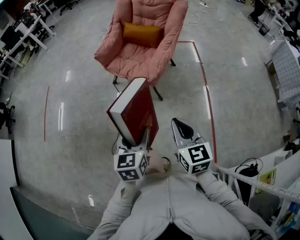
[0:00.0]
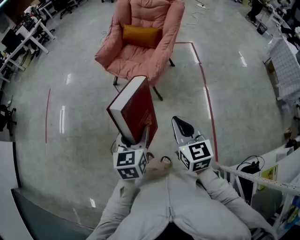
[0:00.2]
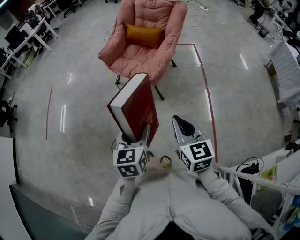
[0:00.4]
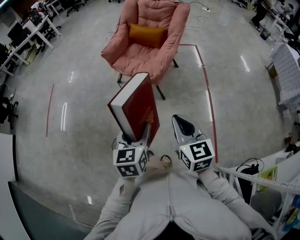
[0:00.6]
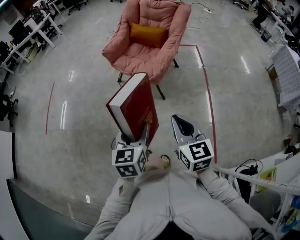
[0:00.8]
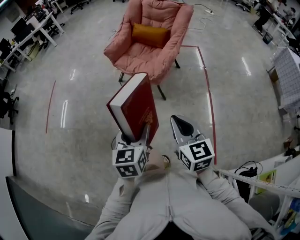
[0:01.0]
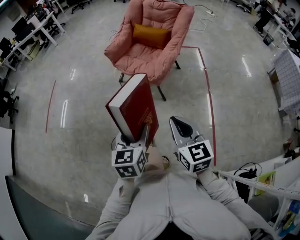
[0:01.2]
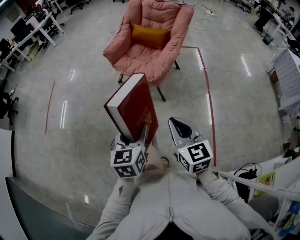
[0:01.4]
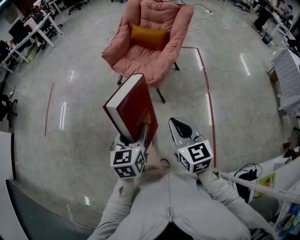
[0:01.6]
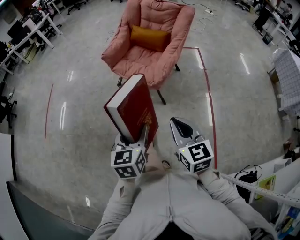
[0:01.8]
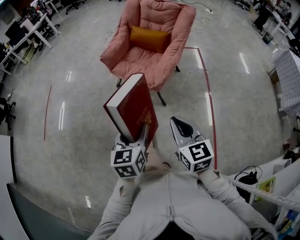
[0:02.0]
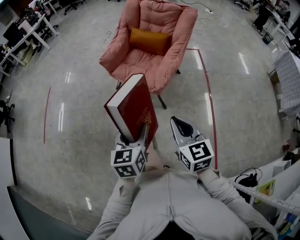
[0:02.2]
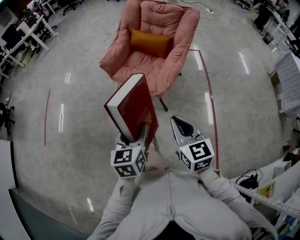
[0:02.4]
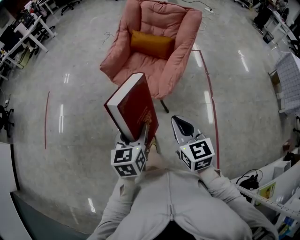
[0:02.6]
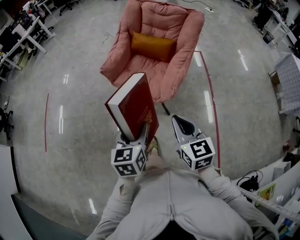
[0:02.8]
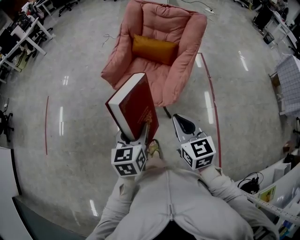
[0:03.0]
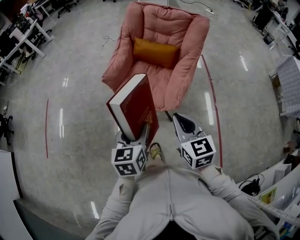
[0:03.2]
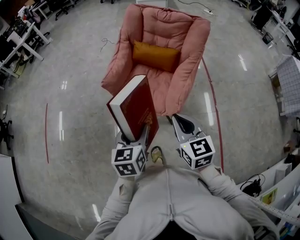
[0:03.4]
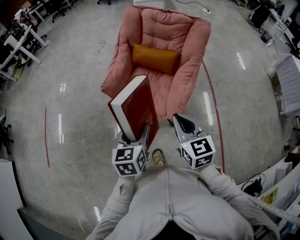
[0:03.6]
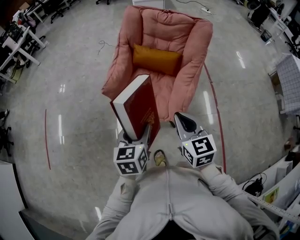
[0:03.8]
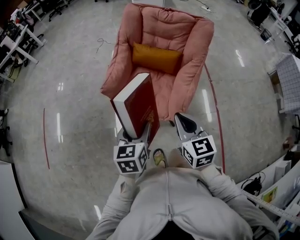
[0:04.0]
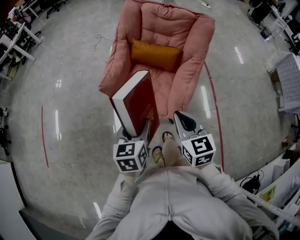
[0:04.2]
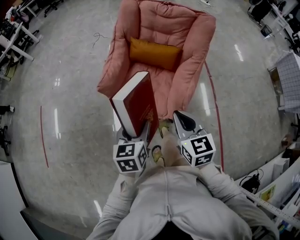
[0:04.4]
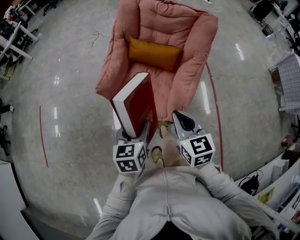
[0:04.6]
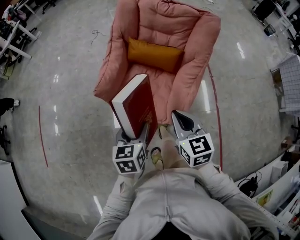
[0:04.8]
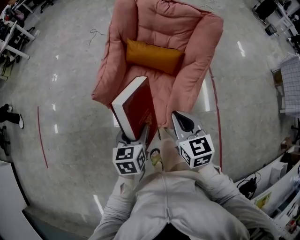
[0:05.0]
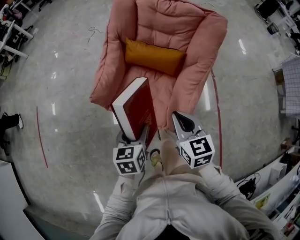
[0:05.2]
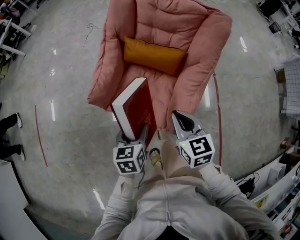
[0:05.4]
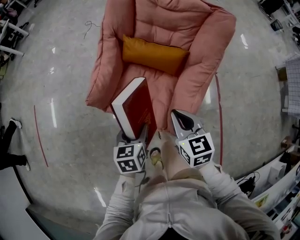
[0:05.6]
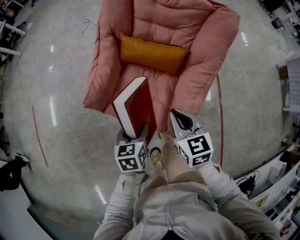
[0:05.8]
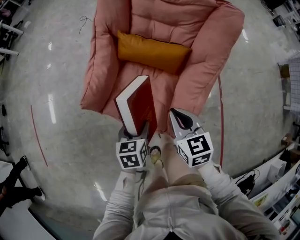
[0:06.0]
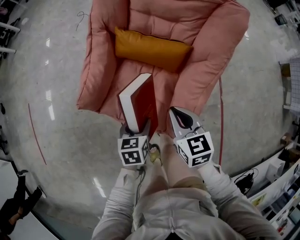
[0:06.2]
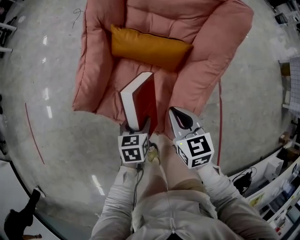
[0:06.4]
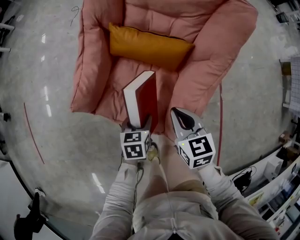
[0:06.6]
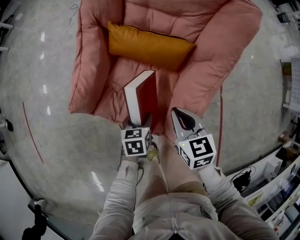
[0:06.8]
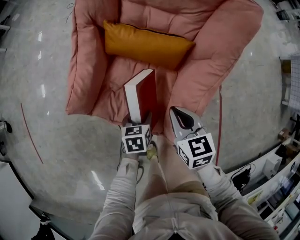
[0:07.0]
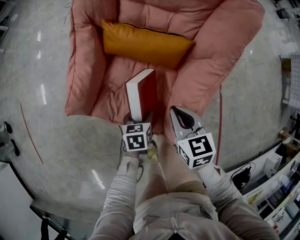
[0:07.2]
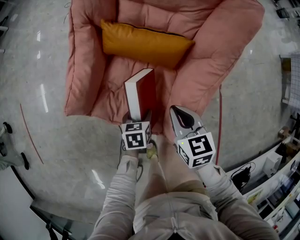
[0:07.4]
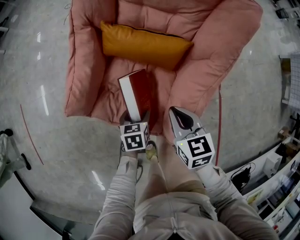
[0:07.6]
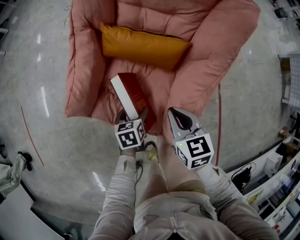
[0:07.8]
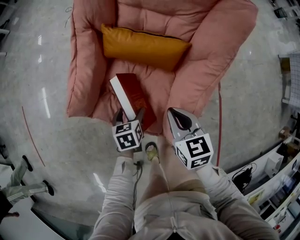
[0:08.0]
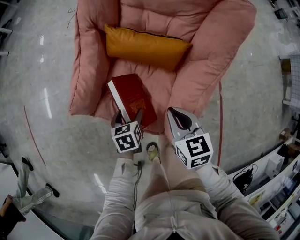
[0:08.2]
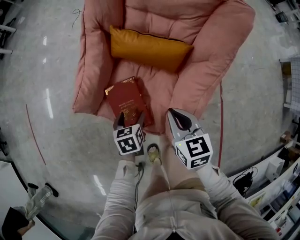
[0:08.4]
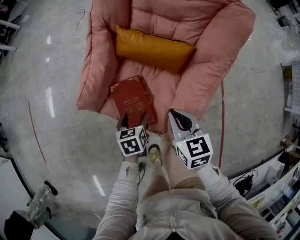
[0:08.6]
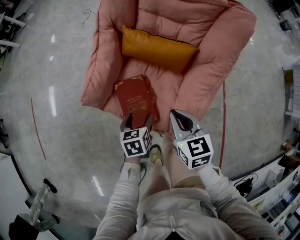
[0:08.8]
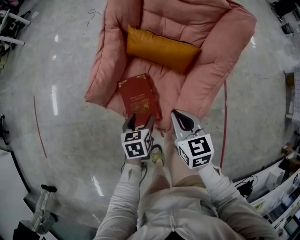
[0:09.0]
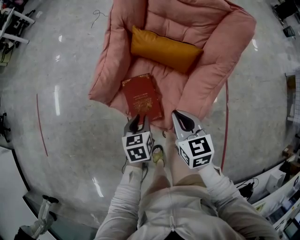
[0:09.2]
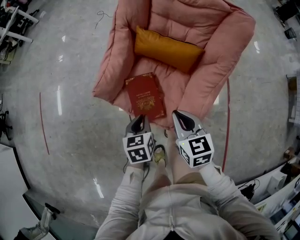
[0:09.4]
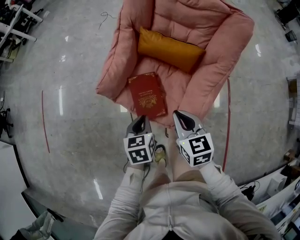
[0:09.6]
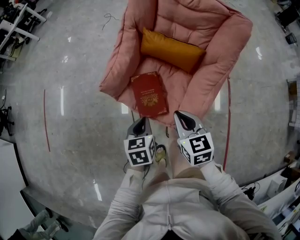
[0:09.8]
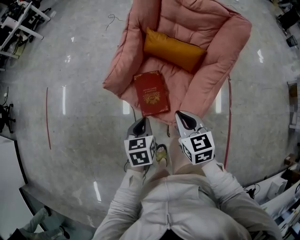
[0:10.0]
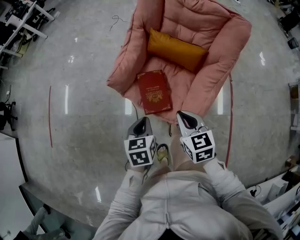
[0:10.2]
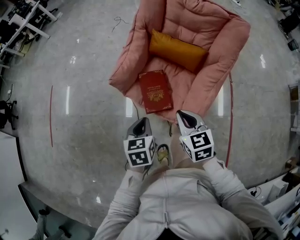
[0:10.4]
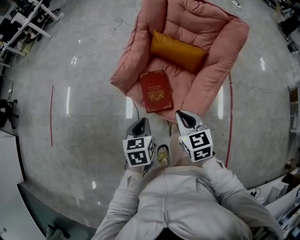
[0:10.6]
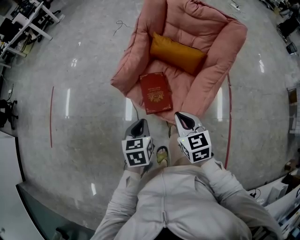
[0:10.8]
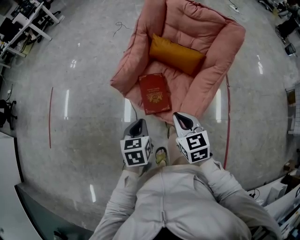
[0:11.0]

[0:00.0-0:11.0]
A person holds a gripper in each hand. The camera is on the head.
0:01.6 to 0:03.2: Both grippers travel together forward, approximately 30 cm.
0:03.2 to 0:04.8: The right gripper shifts roughly 15 cm forward. The left gripper is displaced forward and downward by some 20 cm.
0:04.8 to 0:06.2: The left gripper moves downward and forward, about 20 cm, while the right gripper moves forward and downward, roughly 20 cm.
0:06.2 to 0:07.8: The right gripper is displaced downward by some 5 cm. The left gripper heads downward and forward, covering approximately 10 cm.
0:07.8 to 0:09.4: Both grippers travel together upward, backward and to the left, roughly 15 cm. The left gripper closes its fingers.
0:09.4 to 0:11.0: Both grippers travel together backward, upward and to the left, some 15 cm.

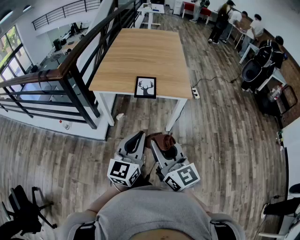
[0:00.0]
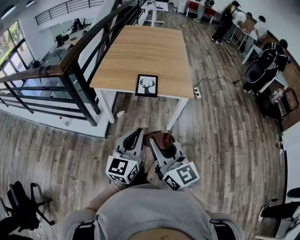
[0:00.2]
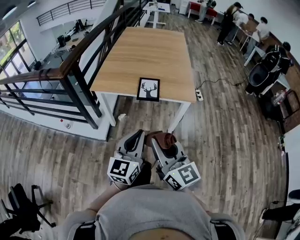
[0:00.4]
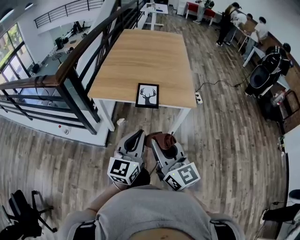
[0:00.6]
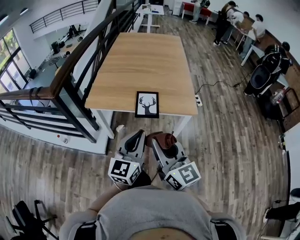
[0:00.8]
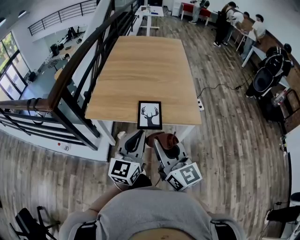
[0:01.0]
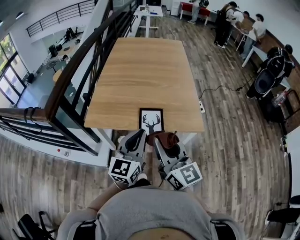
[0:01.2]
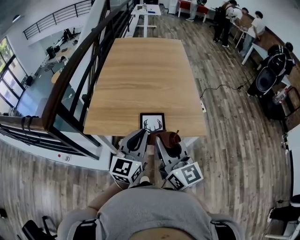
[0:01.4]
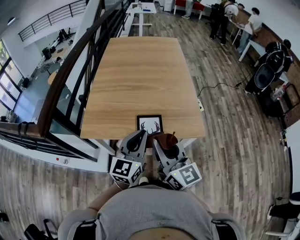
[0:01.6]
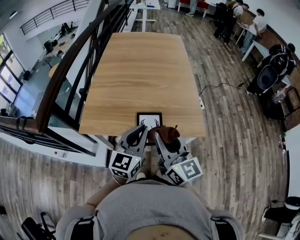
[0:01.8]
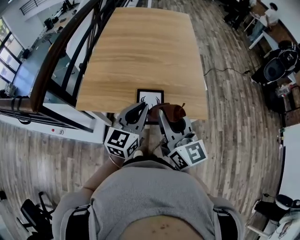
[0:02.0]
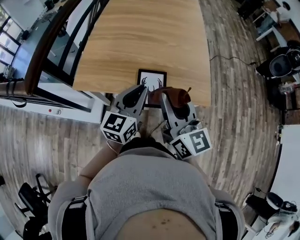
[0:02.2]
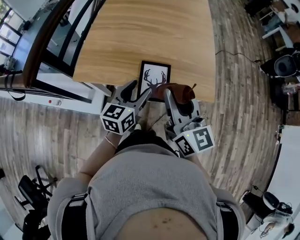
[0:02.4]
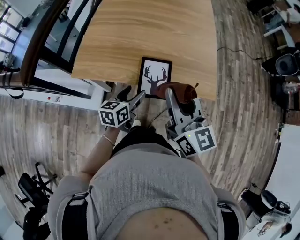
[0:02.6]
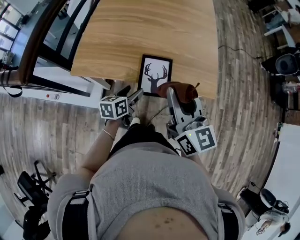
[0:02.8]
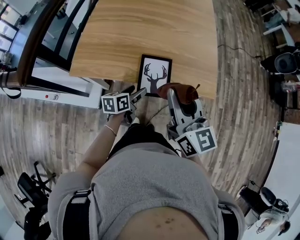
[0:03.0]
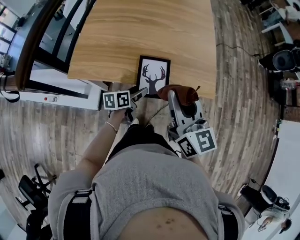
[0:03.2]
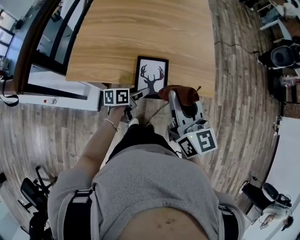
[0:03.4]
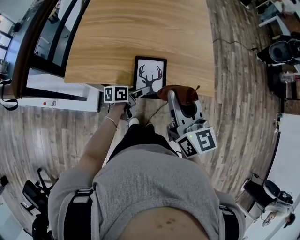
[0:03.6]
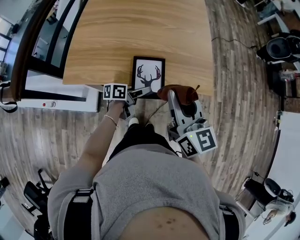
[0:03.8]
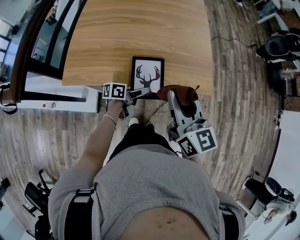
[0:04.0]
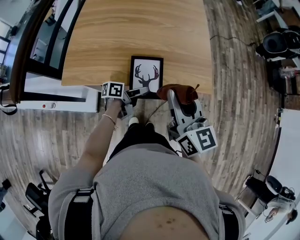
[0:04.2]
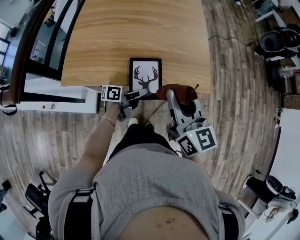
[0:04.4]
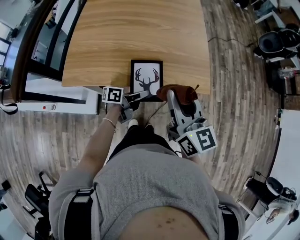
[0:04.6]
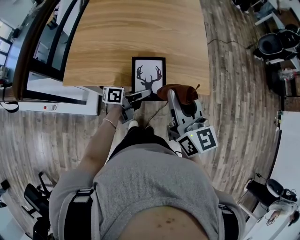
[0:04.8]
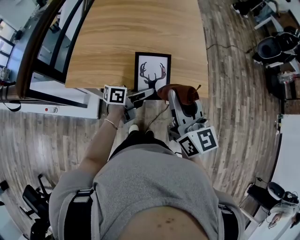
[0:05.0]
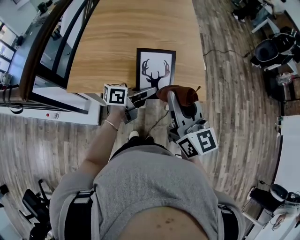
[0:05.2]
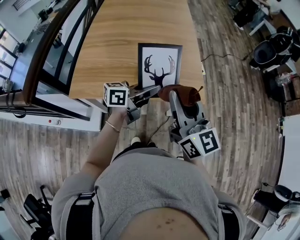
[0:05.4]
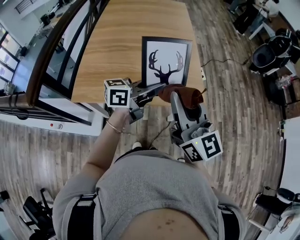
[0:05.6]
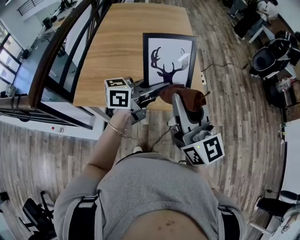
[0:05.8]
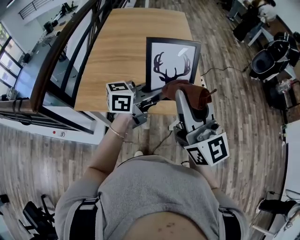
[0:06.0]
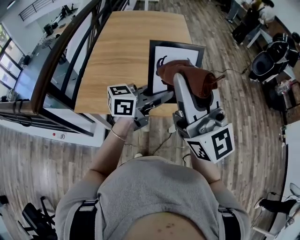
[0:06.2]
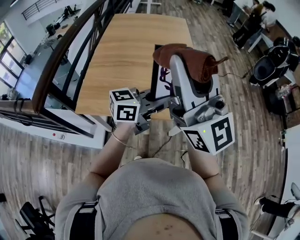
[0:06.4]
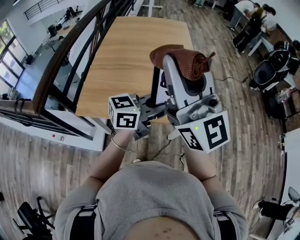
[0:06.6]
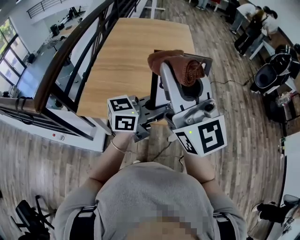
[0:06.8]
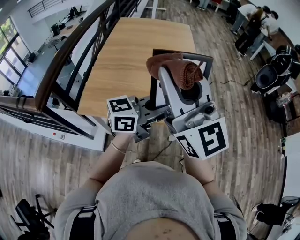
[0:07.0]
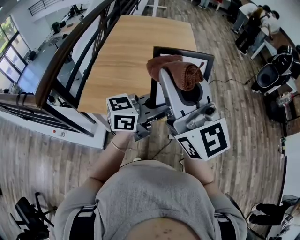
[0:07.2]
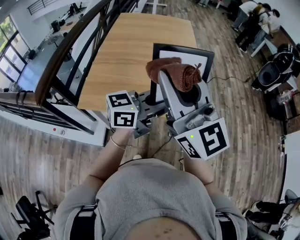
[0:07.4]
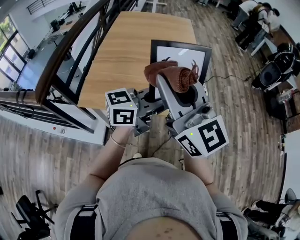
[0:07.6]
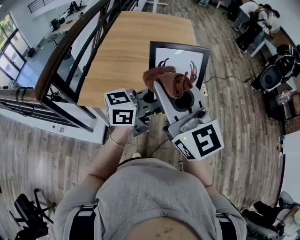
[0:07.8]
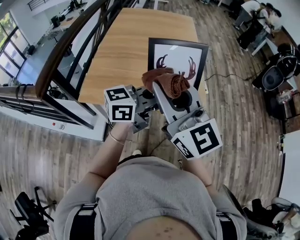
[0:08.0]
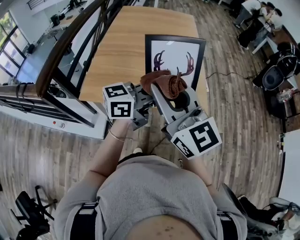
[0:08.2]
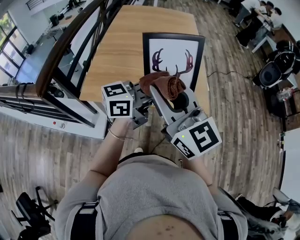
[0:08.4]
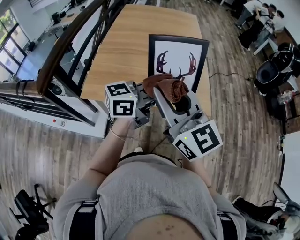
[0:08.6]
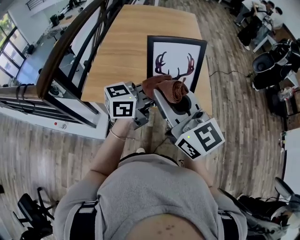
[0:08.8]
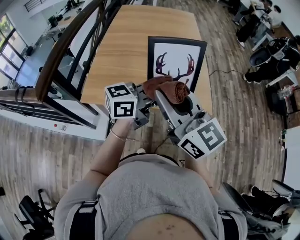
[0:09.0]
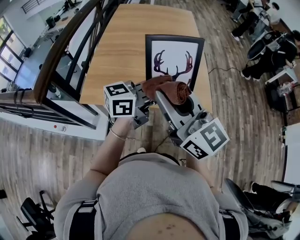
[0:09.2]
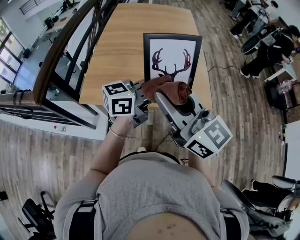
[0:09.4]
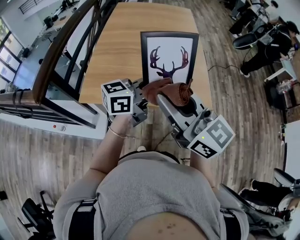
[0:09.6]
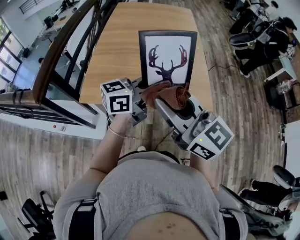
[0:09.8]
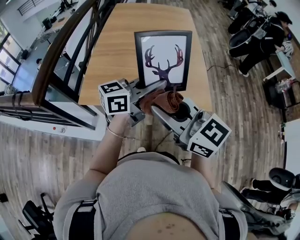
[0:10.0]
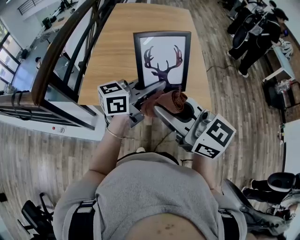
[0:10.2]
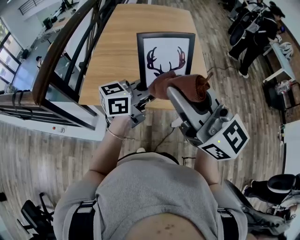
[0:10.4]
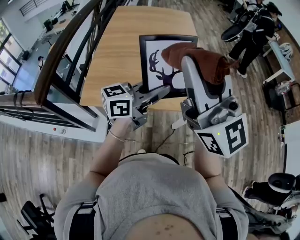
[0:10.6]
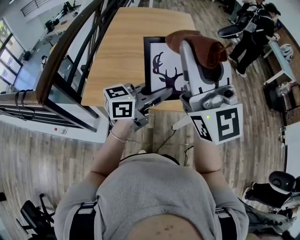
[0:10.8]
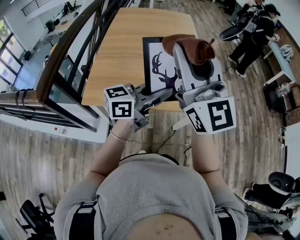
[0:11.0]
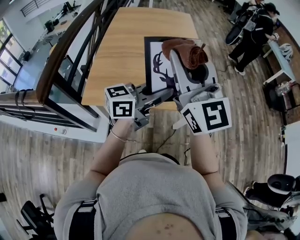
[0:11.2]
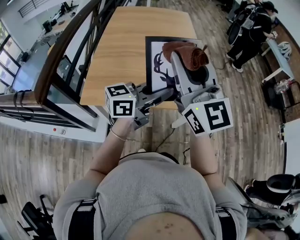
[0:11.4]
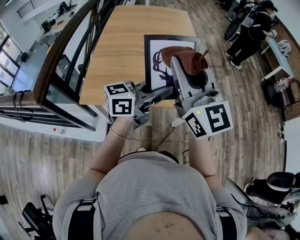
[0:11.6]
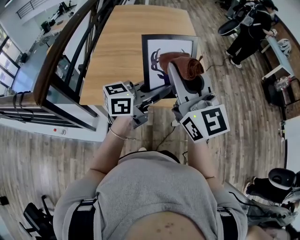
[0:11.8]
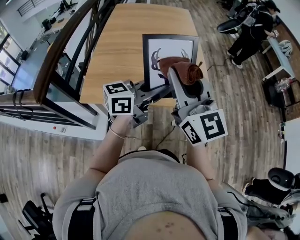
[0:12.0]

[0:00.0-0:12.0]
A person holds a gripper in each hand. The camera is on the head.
0:00.0 to 0:01.6: The grippers both shift forward by about 35 cm.
0:01.6 to 0:03.0: The left gripper is displaced downward by roughly 25 cm, rolls counterclockwise, seen from behind, by some 40 degrees, and opens, while the right gripper goes about 5 cm downward.
0:03.0 to 0:04.4: The left gripper travels to the right by about 5 cm, turns by some 40 degrees, and closes up.
0:04.4 to 0:06.0: The left gripper goes approximately 30 cm upward, and rolls clockwise, seen from behind, by about 50 degrees; the right gripper goes roughly 15 cm upward, and turns by roughly 30 degrees.
0:06.0 to 0:07.6: The right gripper travels to the left by approximately 5 cm, while the left gripper shifts some 5 cm backward.
0:07.6 to 0:09.0: The left gripper travels to the left by approximately 5 cm; the right gripper goes about 10 cm downward.
0:09.0 to 0:10.4: The right gripper moves upward, some 5 cm.
0:10.4 to 0:12.0: The right gripper goes approximately 5 cm forward, travels upward and back again, approximately 10 cm each way, and rotates approximately 20 degrees.

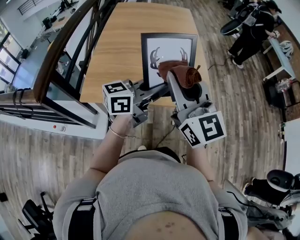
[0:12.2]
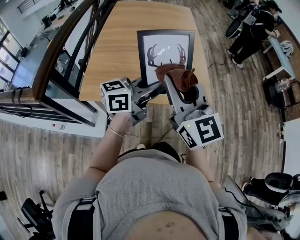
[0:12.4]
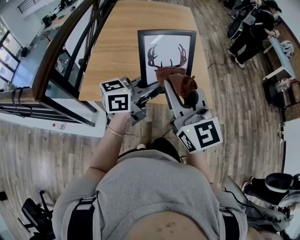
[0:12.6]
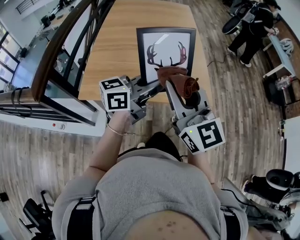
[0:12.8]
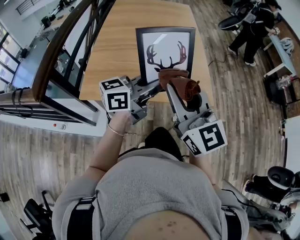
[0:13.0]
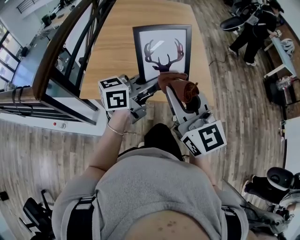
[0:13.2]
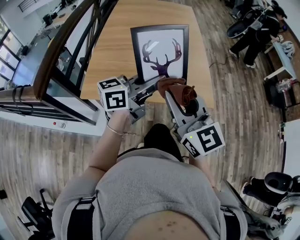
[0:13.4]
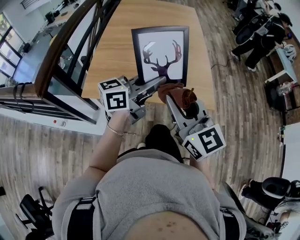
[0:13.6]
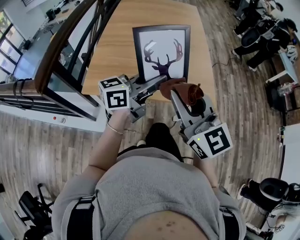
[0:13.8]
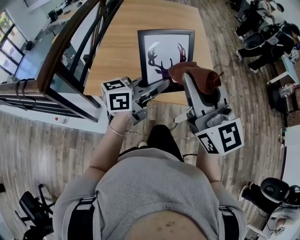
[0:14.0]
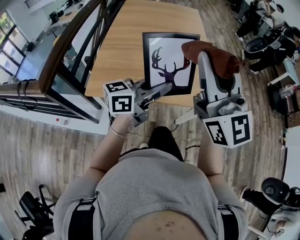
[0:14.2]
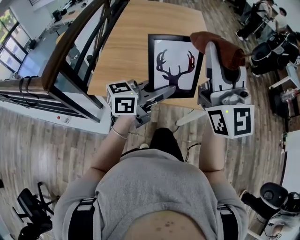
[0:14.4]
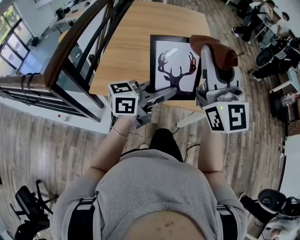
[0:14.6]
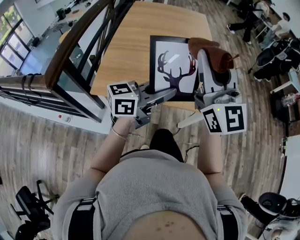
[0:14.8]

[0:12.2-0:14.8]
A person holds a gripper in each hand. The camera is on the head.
0:12.2 to 0:13.4: The right gripper moves downward, about 5 cm.
0:13.4 to 0:14.8: The right gripper travels upward and forward by roughly 15 cm, and rotates some 20 degrees.
